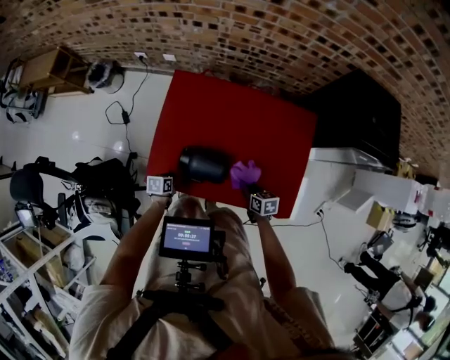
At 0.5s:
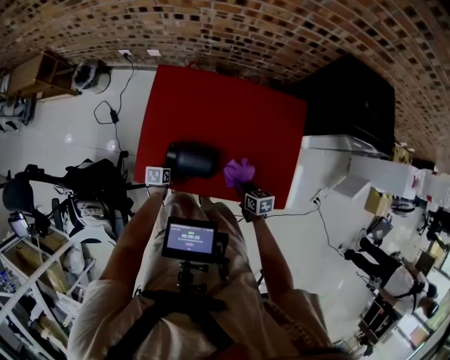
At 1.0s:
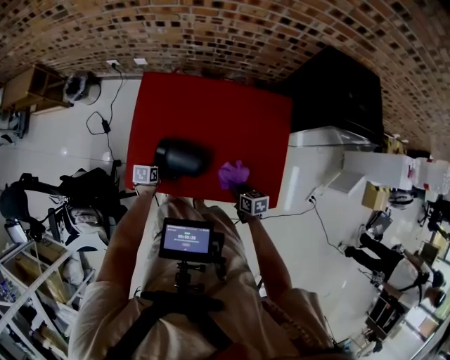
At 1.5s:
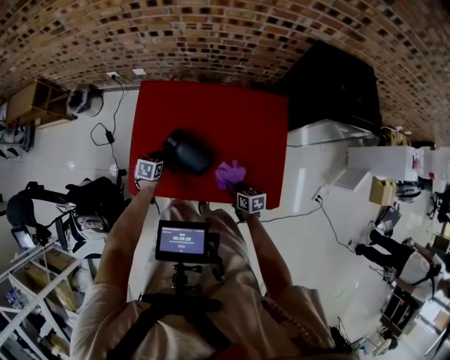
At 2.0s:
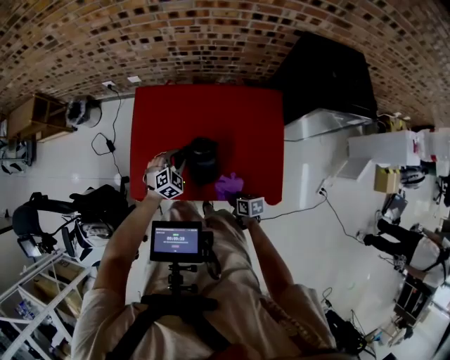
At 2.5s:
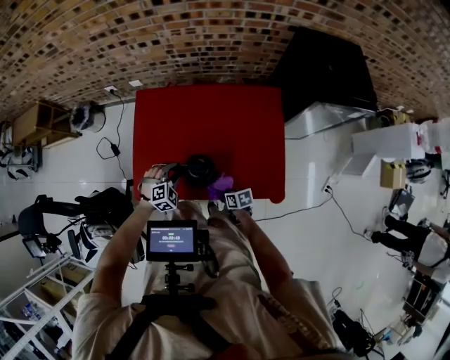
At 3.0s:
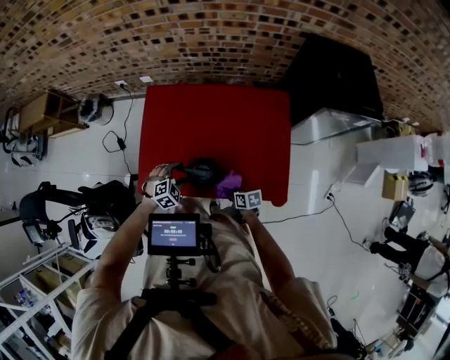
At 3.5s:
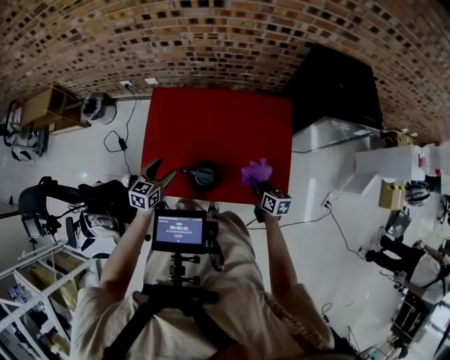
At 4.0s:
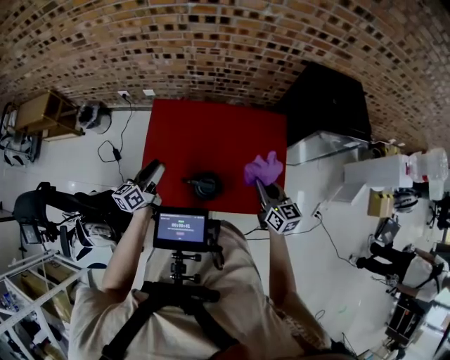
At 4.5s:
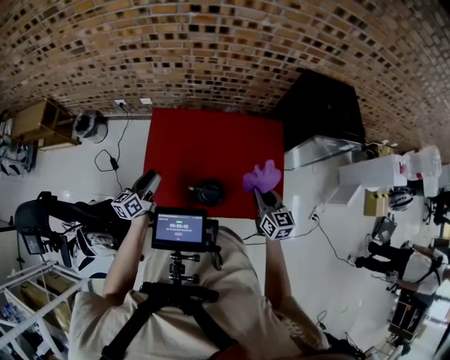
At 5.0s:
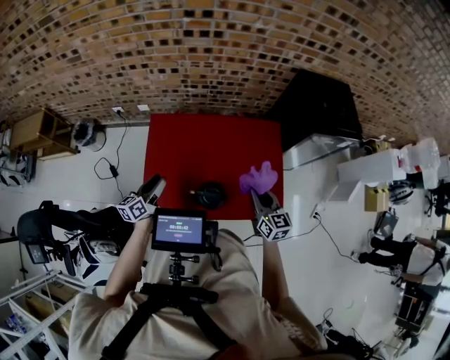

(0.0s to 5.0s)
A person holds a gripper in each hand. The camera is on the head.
0.0s - 2.5s: The right gripper heads backward and downward, covering about 10 cm, while the left gripper is displaced to the right and upward by roughly 20 cm, and rotates around the line of its fingers by some 90 degrees, clockwise from behind.
2.5s - 5.0s: The left gripper heads upward and to the left, covering some 20 cm, and rotates around the line of its fingers by some 90 degrees, counterclockwise from behind, while the right gripper shifts roughly 30 cm upward, and turns by approximately 50 degrees.

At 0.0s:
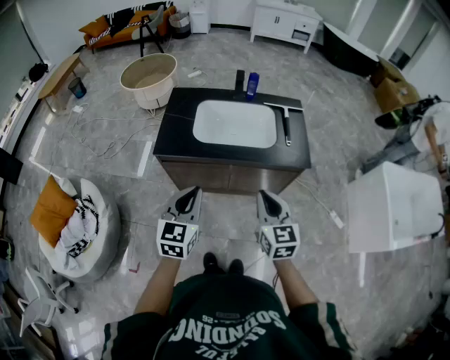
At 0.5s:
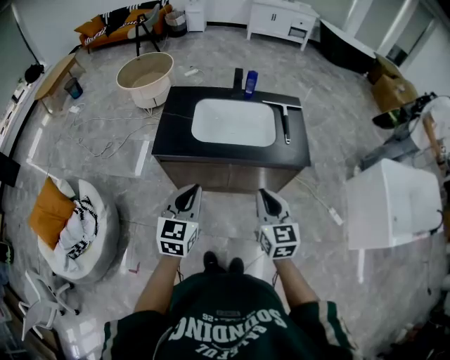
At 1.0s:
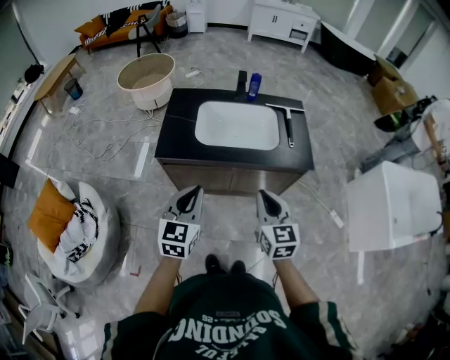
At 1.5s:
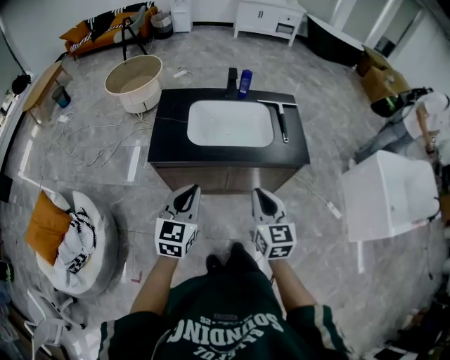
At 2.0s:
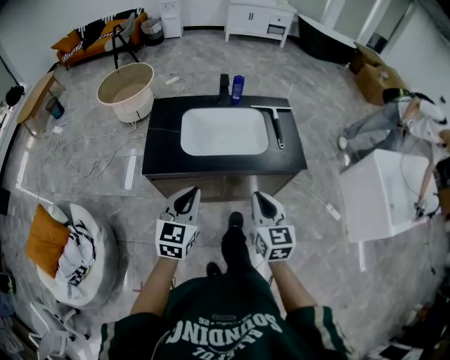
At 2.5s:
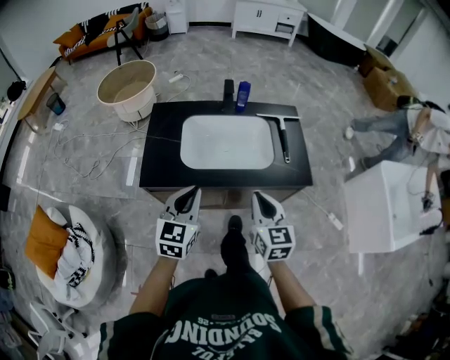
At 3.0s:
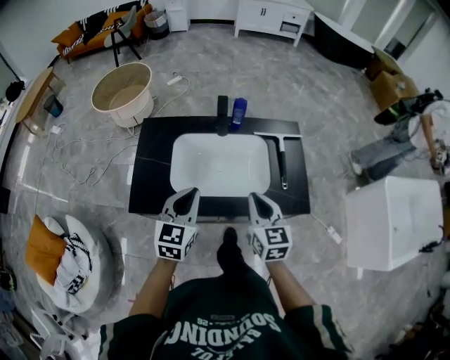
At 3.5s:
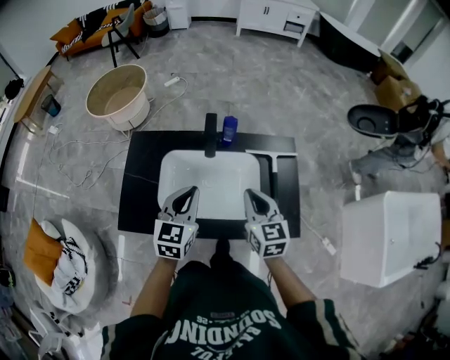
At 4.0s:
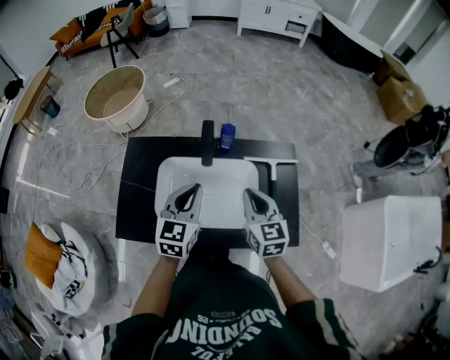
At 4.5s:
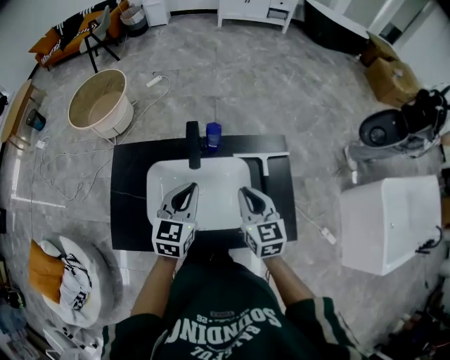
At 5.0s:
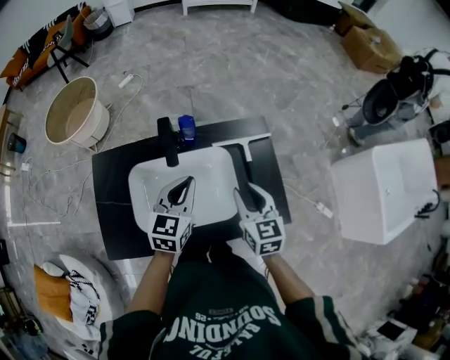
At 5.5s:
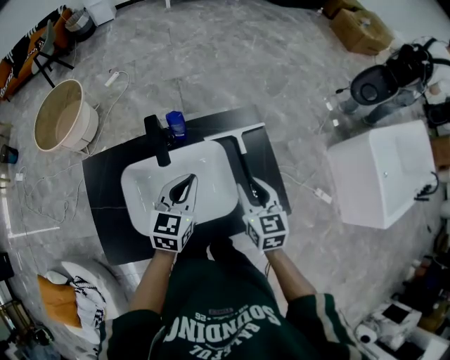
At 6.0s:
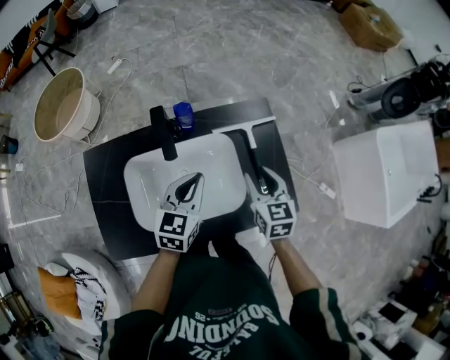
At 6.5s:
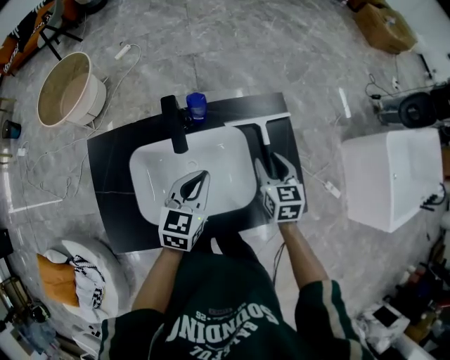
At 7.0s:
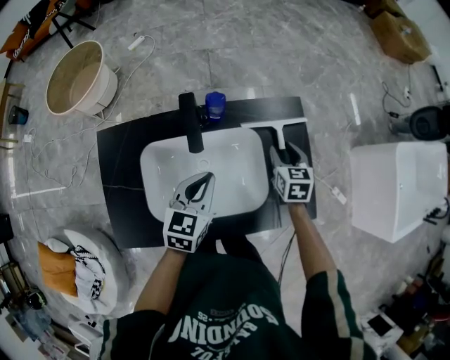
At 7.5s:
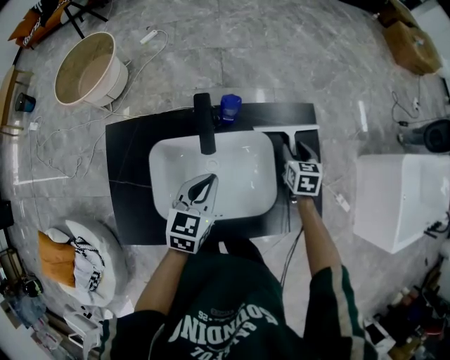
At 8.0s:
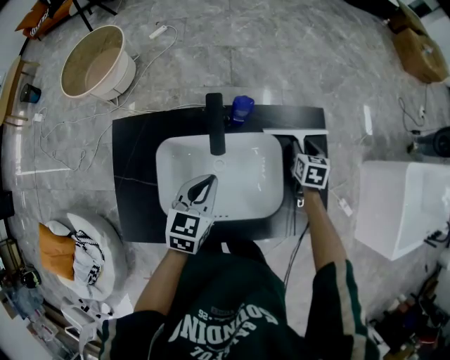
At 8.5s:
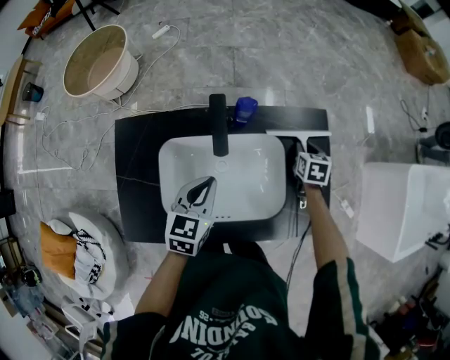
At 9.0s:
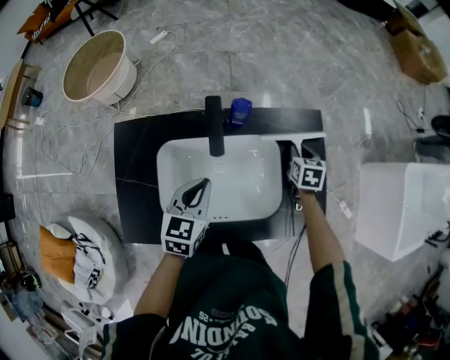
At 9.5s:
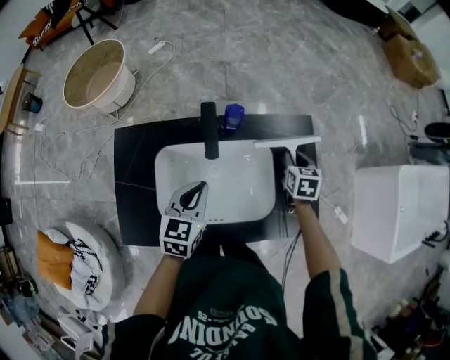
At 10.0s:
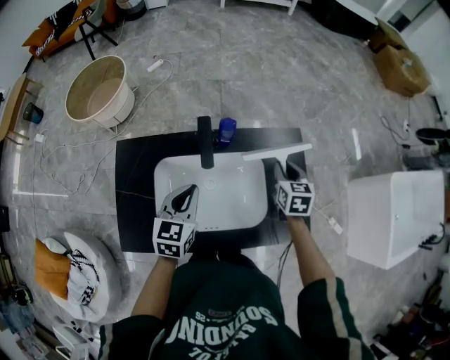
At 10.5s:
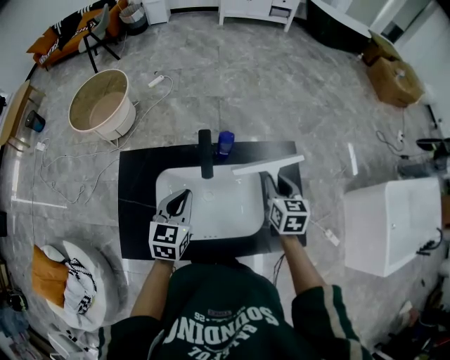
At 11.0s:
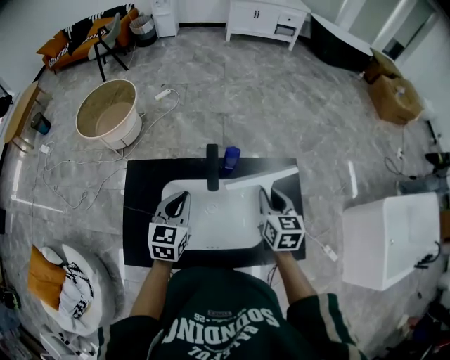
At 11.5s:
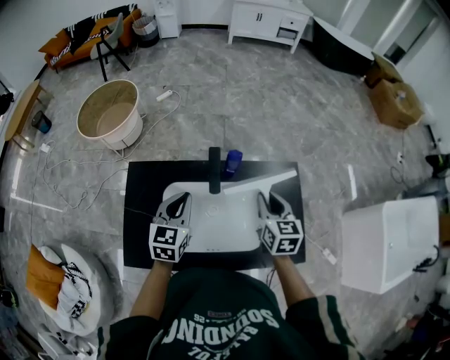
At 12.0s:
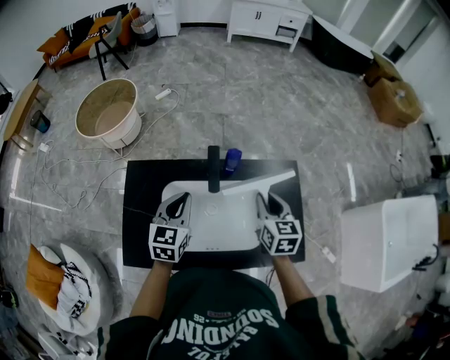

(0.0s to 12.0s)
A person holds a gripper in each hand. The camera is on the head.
0.0s - 2.0s: The left gripper travels forward by roughly 5 cm. Meanwhile the right gripper shifts by some 5 cm.
2.0s - 4.0s: The grippers both shift forward by about 40 cm.
4.0s - 6.0s: The grippers both shift to the right and downward by some 10 cm. The left gripper turns by about 20 degrees; the right gripper opens up.
6.0s - 8.0s: The right gripper moves forward and downward, approximately 20 cm, and rotates approximately 20 degrees; the left gripper goes some 10 cm to the left.
8.0s - 10.0s: The right gripper heads upward and backward, covering some 10 cm. The left gripper travels upward by some 5 cm.
10.0s - 12.0s: The right gripper shifts about 15 cm upward and to the left, while the left gripper is displaced to the left by approximately 5 cm.

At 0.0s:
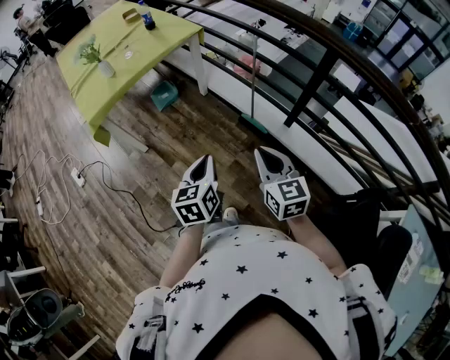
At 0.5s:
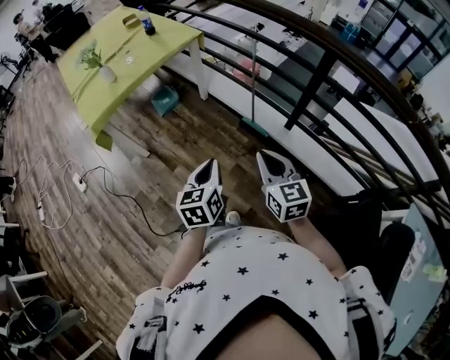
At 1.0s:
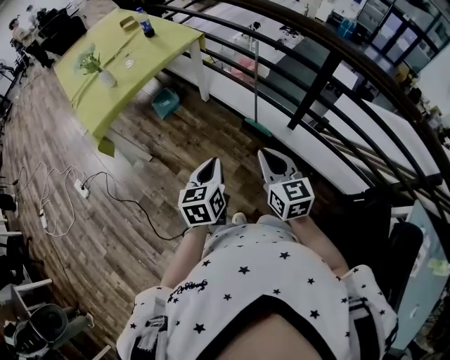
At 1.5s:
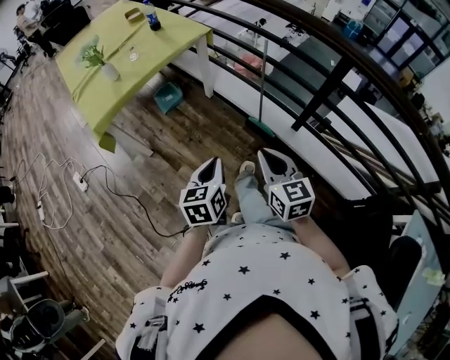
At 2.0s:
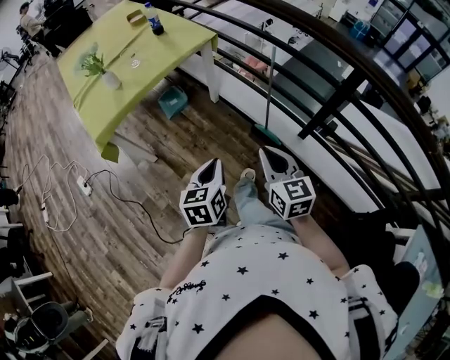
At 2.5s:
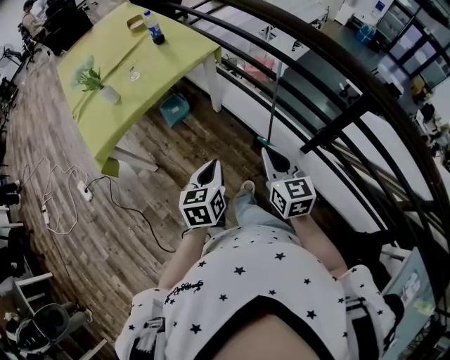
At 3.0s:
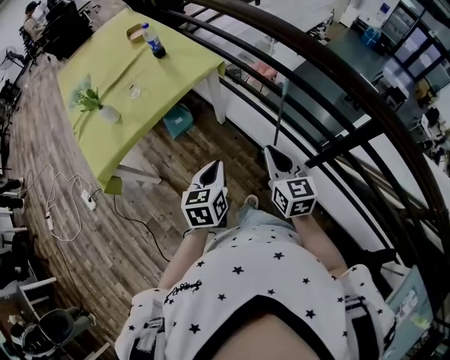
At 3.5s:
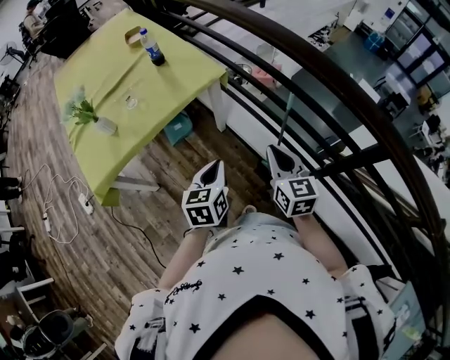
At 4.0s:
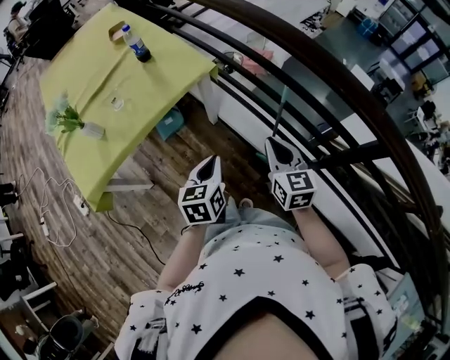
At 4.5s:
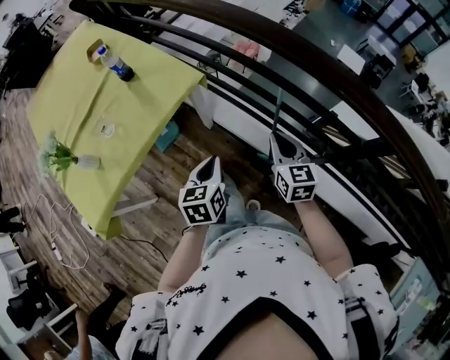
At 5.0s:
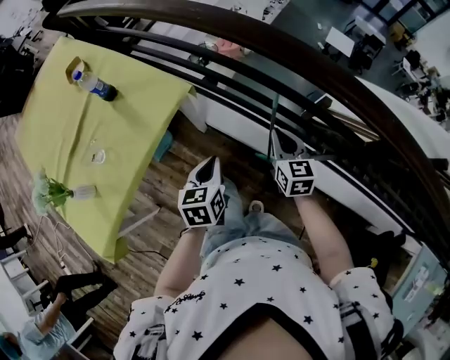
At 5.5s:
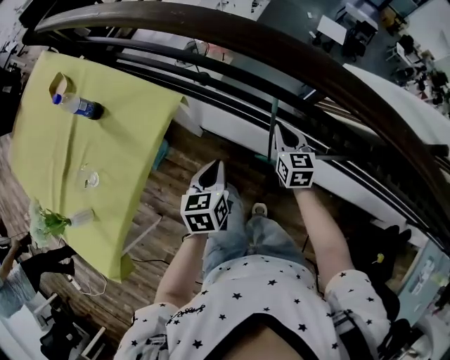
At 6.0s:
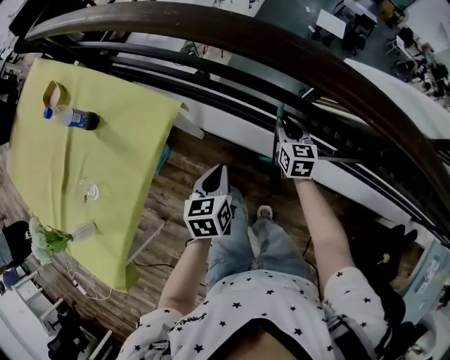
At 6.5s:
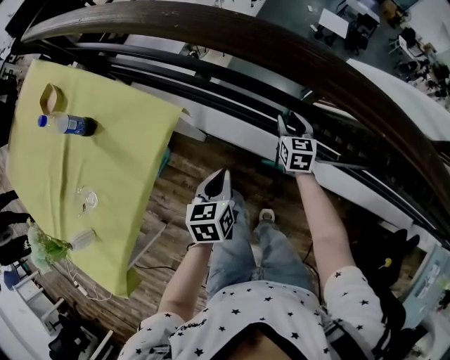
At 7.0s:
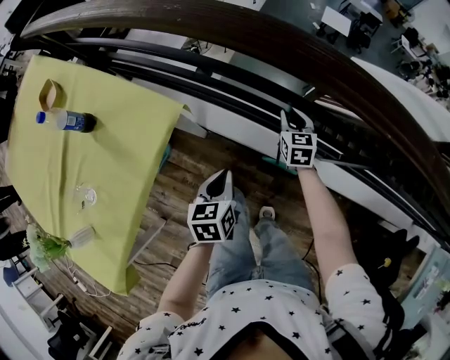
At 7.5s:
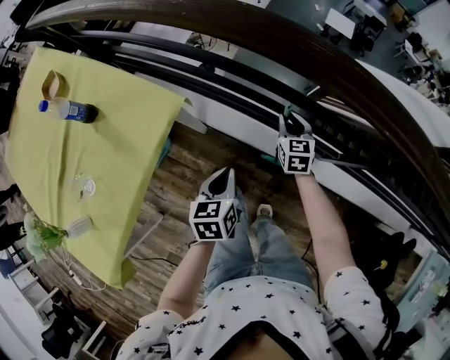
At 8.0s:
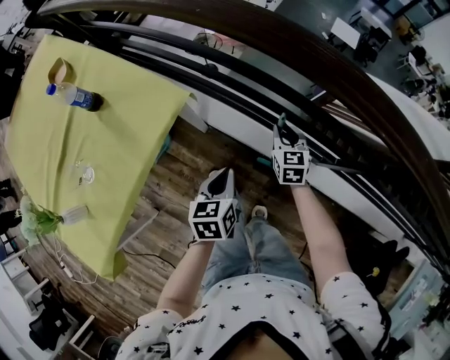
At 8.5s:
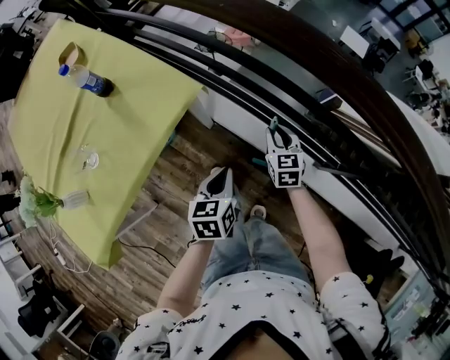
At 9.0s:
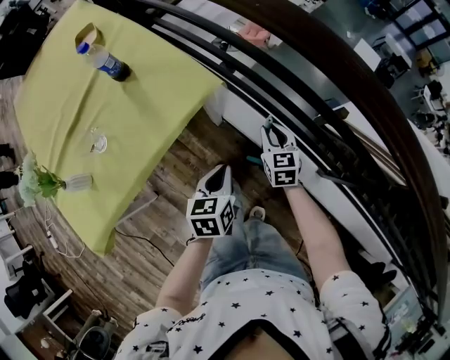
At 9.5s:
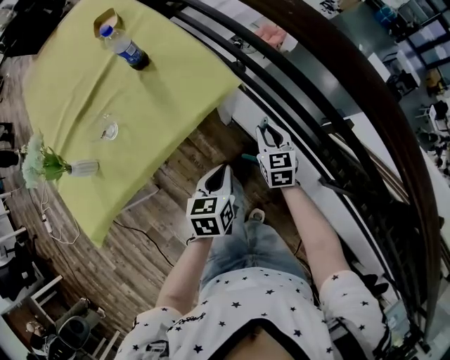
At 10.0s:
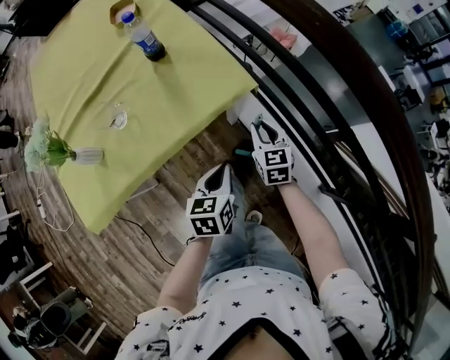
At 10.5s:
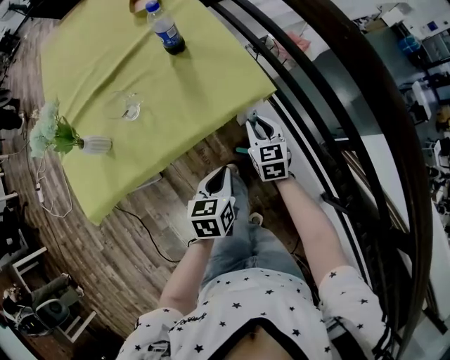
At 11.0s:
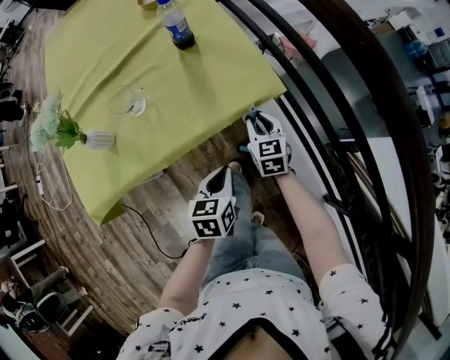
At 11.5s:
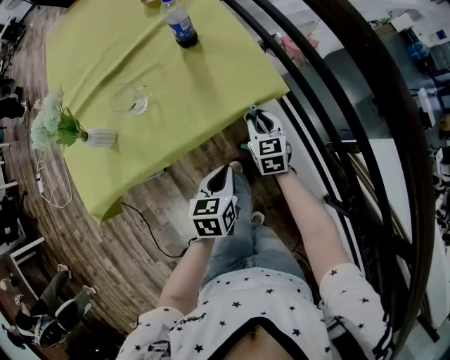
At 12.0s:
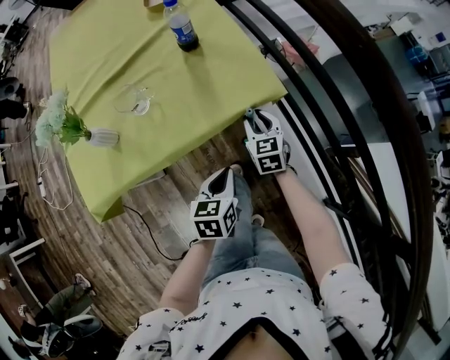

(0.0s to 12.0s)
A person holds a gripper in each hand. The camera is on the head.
0.0s - 2.0s: Both grippers move forward, about 10 cm.
2.0s - 4.0s: The two grippers go some 35 cm forward.
4.0s - 6.0s: The right gripper shifts by roughly 35 cm, and turns by roughly 30 degrees, while the left gripper shifts by roughly 25 cm, and changes its angle by about 20 degrees.
8.0s - 10.0s: The right gripper changes place by about 25 cm, and changes its angle by approximately 30 degrees, while the left gripper ends up approximately 15 cm from where it was, and changes its angle by approximately 20 degrees.
10.0s - 12.0s: The right gripper travels to the left by some 10 cm; the left gripper shifts roughly 5 cm to the left.
